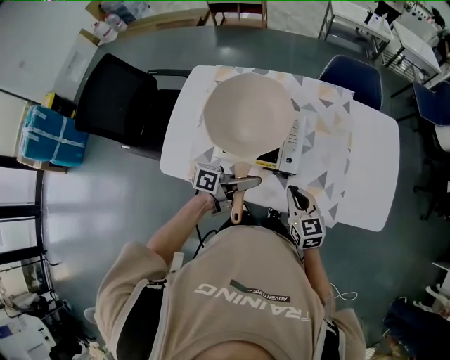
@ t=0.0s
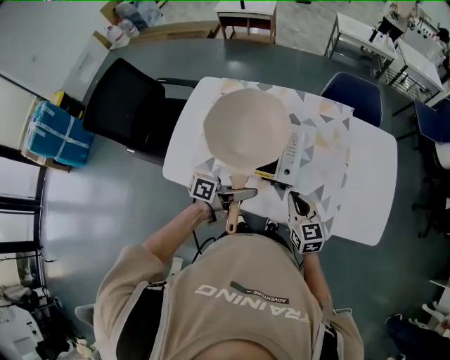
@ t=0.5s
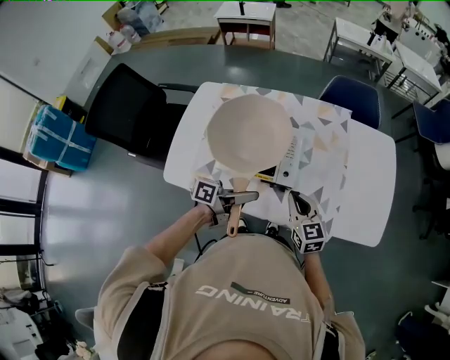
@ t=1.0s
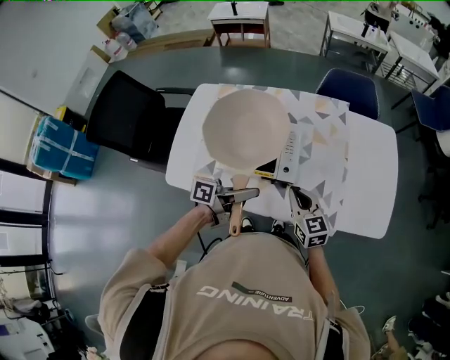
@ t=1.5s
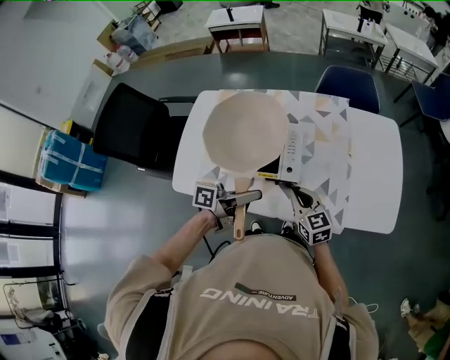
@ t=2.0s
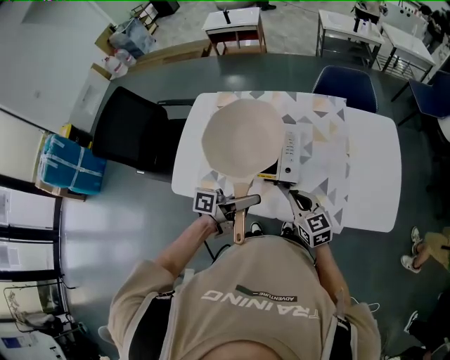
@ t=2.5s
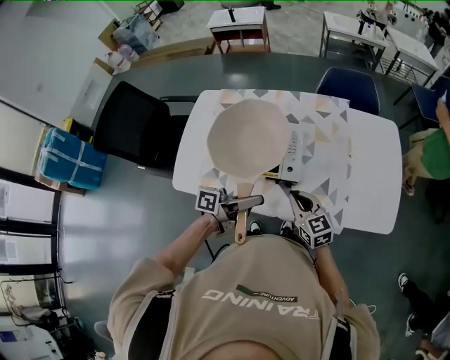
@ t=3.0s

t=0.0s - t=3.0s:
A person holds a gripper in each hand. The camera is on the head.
t=0.0s - t=1.5s: The left gripper moves approximately 5 cm.
t=1.5s - t=3.0s: The grippers stay close to where they were, moving slightly.

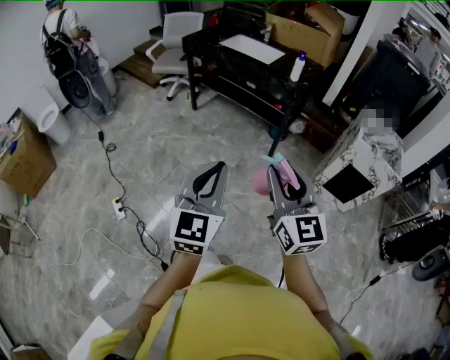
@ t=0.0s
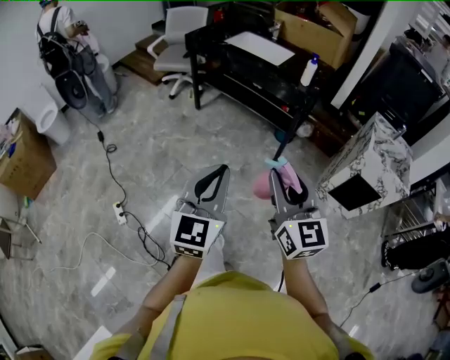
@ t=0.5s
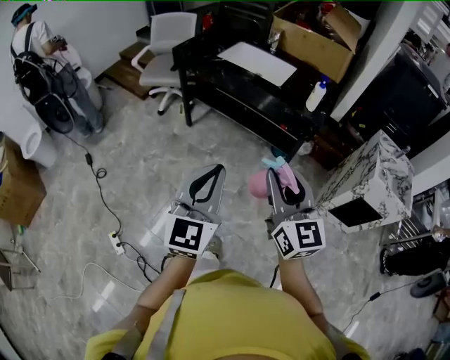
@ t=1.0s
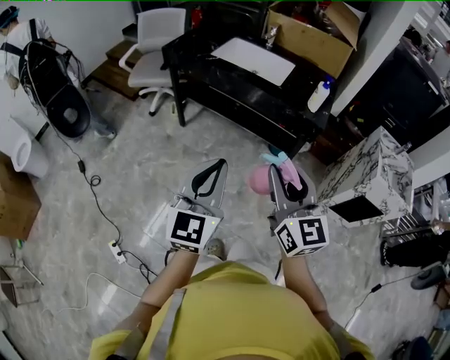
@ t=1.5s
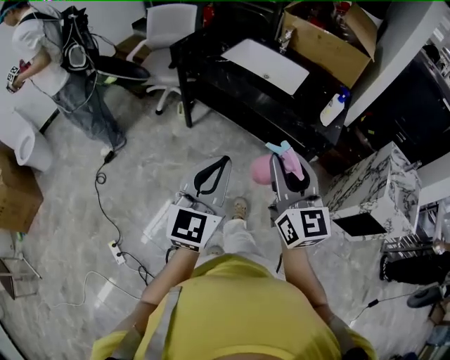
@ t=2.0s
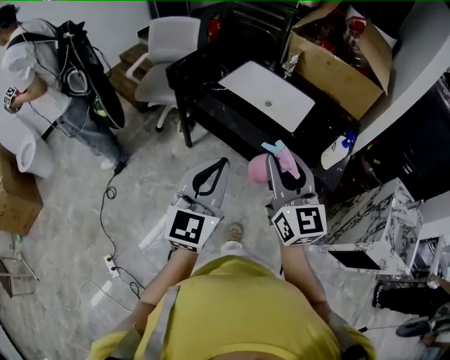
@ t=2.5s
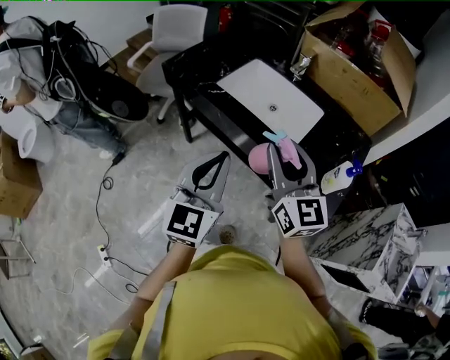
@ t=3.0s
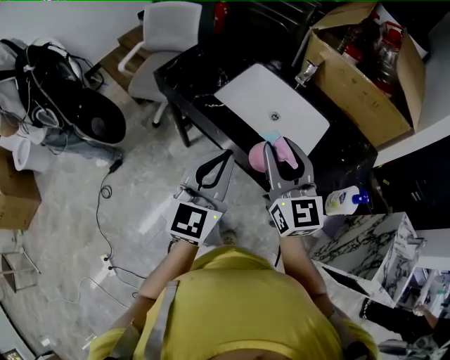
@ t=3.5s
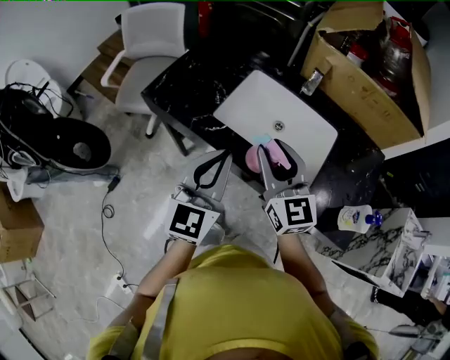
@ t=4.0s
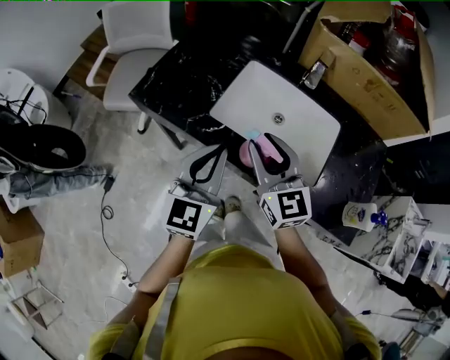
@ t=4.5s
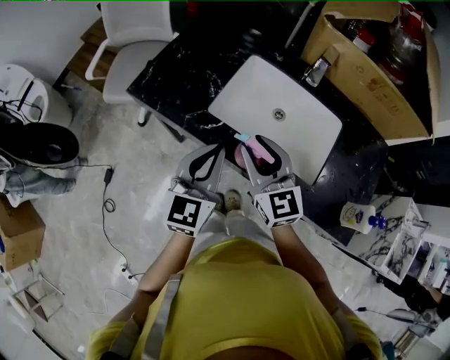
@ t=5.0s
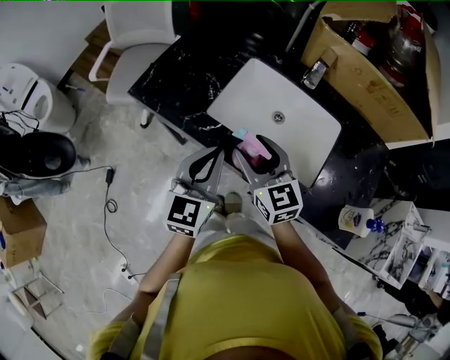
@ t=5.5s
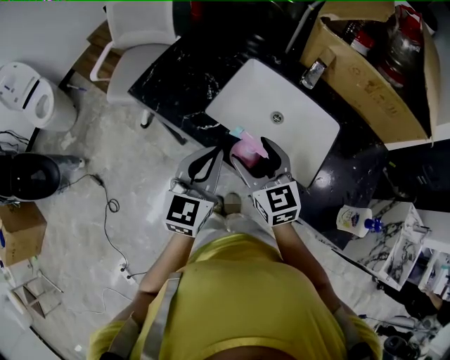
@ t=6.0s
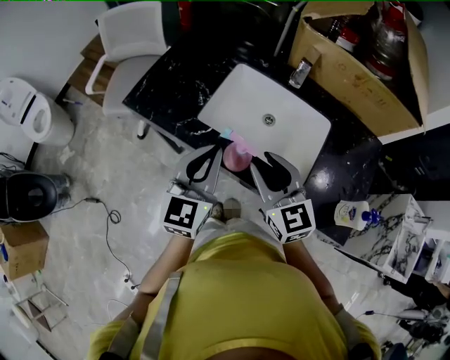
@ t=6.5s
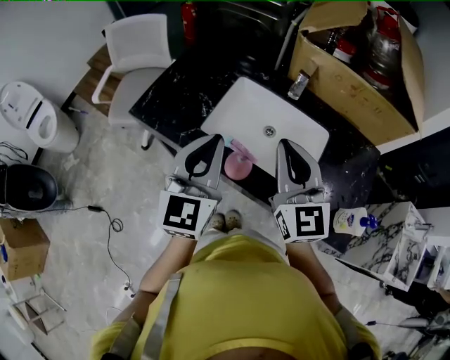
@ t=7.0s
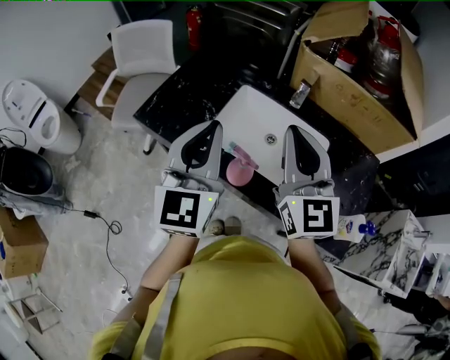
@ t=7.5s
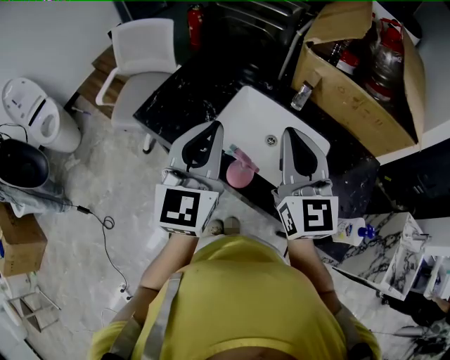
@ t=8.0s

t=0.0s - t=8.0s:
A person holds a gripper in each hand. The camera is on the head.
t=0.0s - t=2.0s: Both grippers are carried forward, about 50 cm.
t=2.0s - t=4.0s: The pair of grippers is taken forward, some 50 cm.
t=4.0s - t=6.0s: Both grippers move downward, about 10 cm. The right gripper opens up.
t=6.0s - t=8.0s: Both grippers move upward, some 20 cm. The right gripper rotates approximately 30 degrees, and closes.

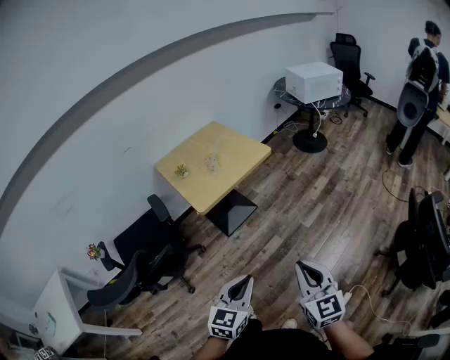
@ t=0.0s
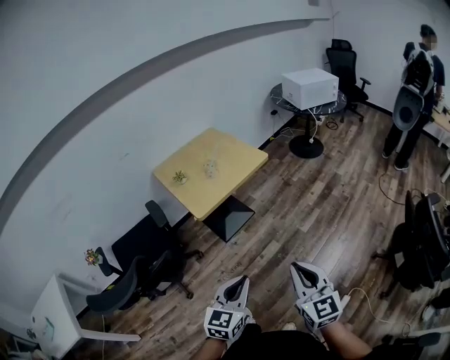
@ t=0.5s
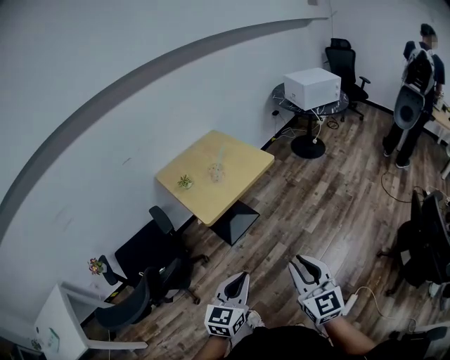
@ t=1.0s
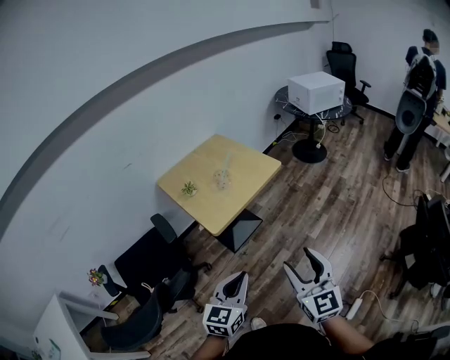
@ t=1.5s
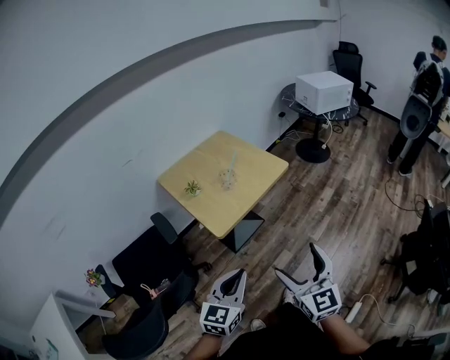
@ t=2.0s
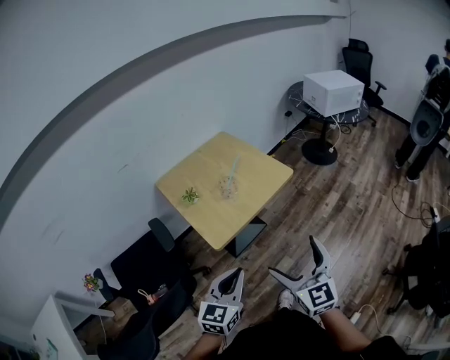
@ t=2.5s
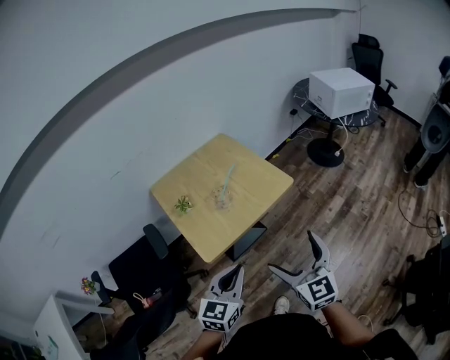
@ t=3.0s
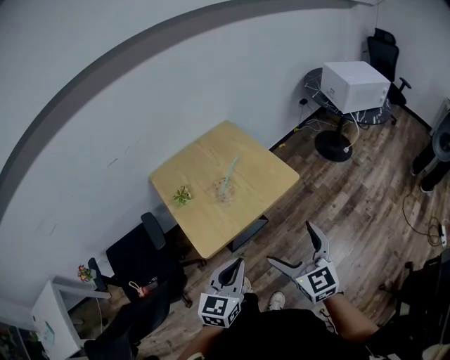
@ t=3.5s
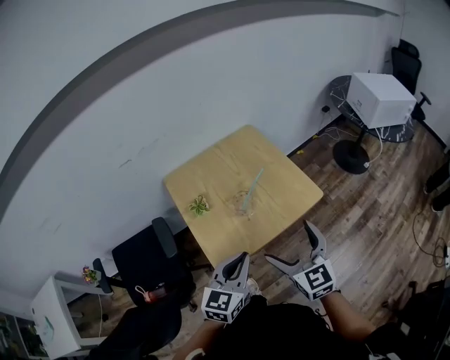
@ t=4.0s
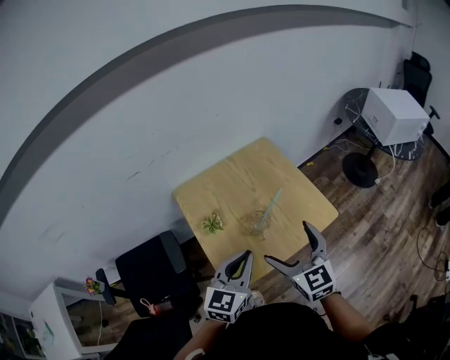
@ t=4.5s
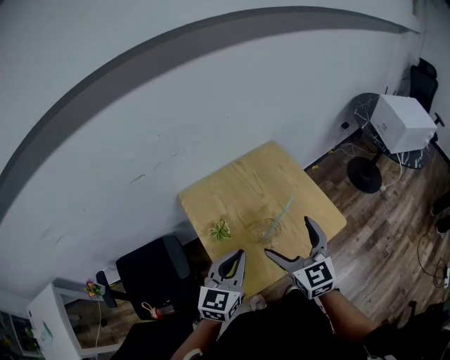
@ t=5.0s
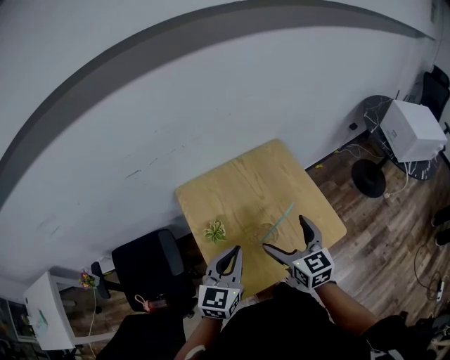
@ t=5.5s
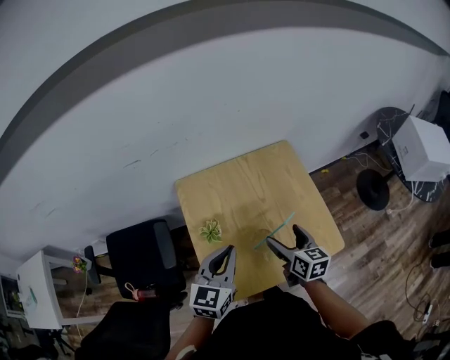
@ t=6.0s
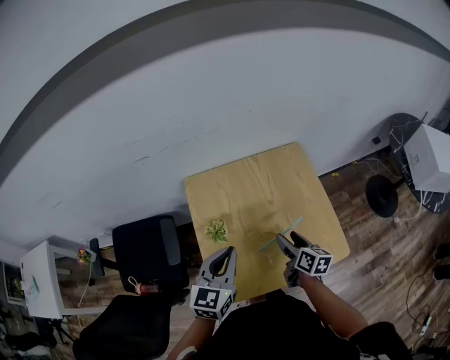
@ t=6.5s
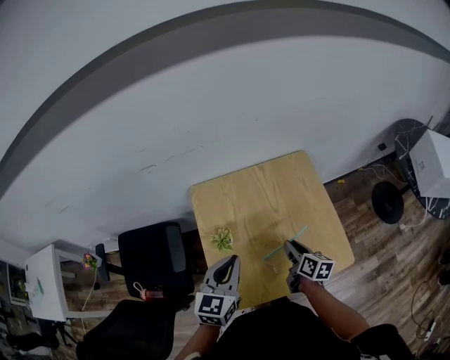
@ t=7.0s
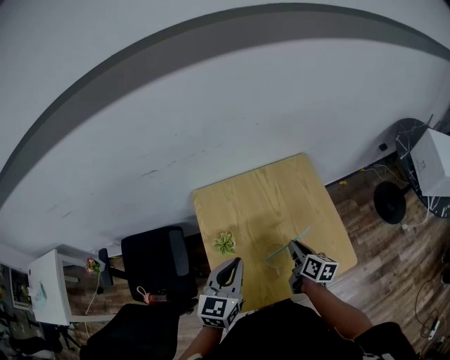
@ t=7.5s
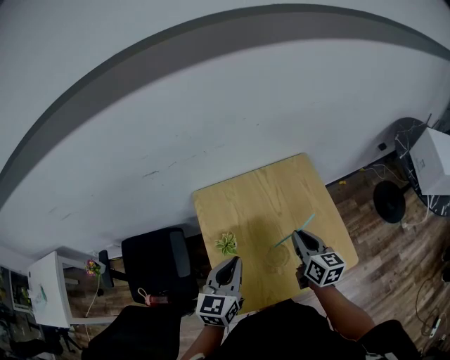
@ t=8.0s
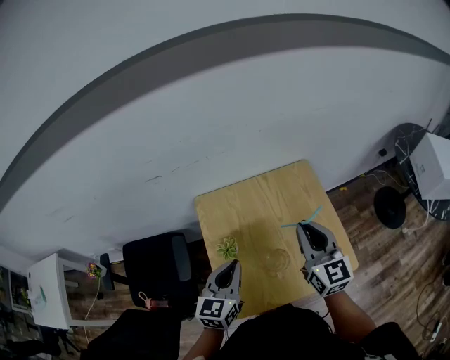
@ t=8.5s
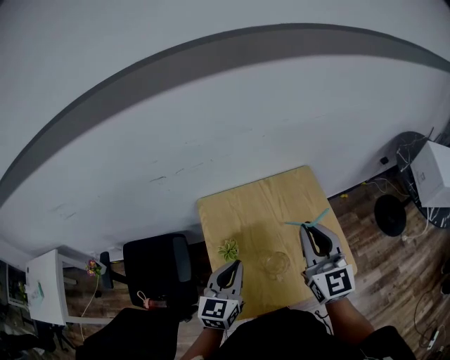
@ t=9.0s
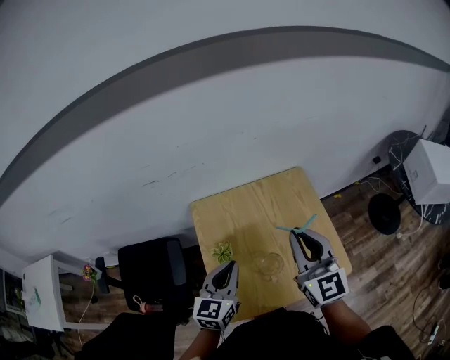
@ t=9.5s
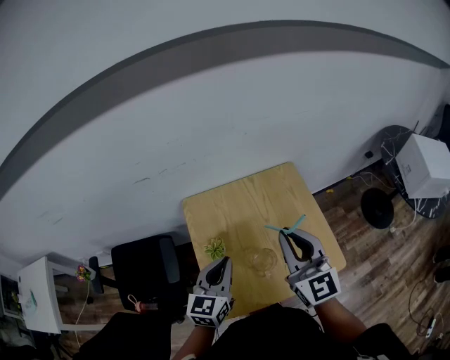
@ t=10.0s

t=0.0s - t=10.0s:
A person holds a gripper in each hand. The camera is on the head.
t=0.0s - t=2.0s: Both grippers travel together to the left and forward, some 20 cm. The right gripper opens.
t=2.0s - t=4.0s: Both grippers travel together forward, some 35 cm. The right gripper turns by about 20 degrees.
t=4.0s - t=6.0s: The right gripper travels forward and downward by roughly 30 cm, and turns by roughly 30 degrees. Meanwhile the left gripper moves forward, approximately 20 cm.
t=6.0s - t=8.0s: The right gripper travels downward and back again, about 5 cm each way, and closes up.
t=8.0s - t=10.0s: The right gripper heads upward, covering roughly 20 cm, and changes its angle by approximately 40 degrees.

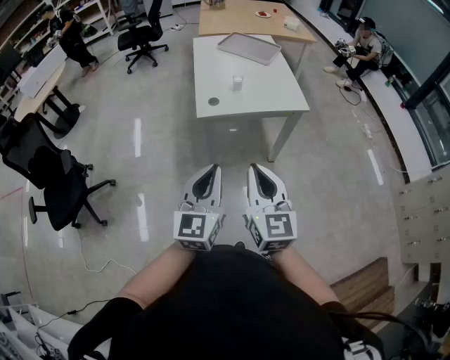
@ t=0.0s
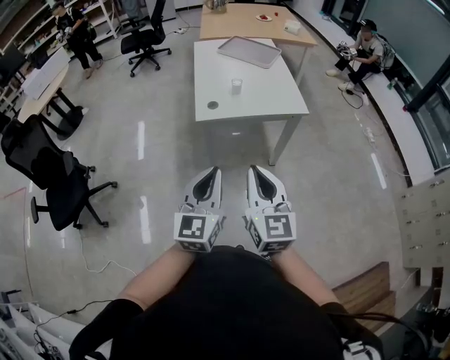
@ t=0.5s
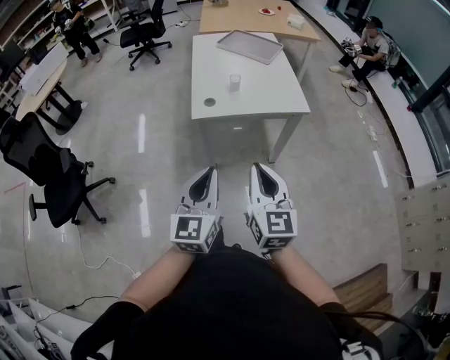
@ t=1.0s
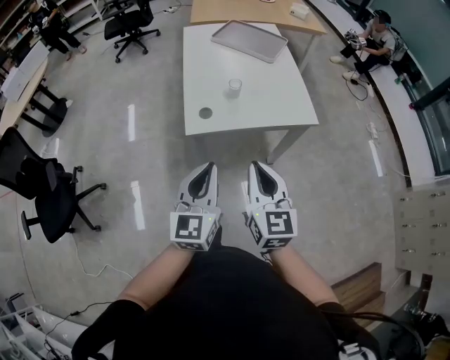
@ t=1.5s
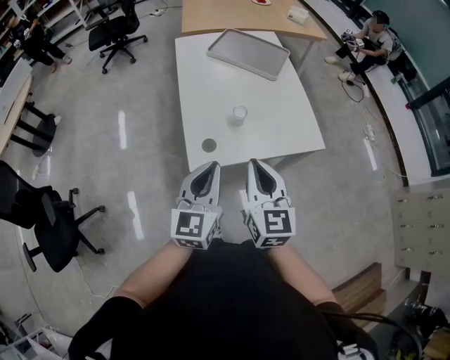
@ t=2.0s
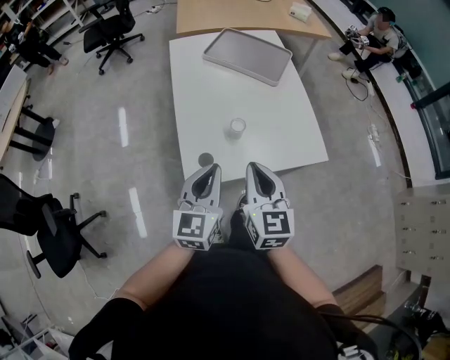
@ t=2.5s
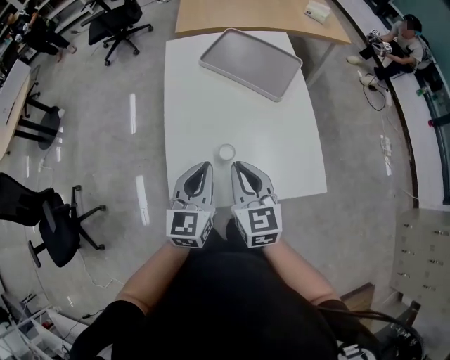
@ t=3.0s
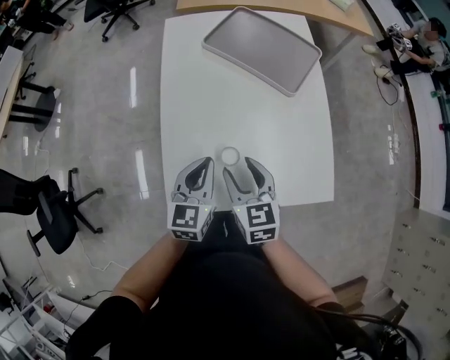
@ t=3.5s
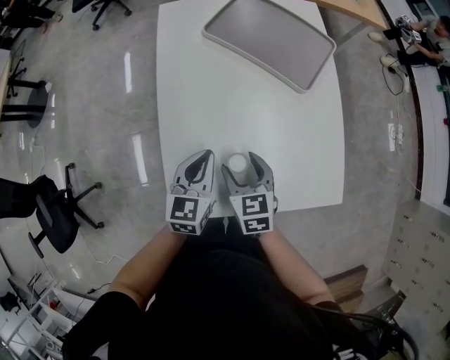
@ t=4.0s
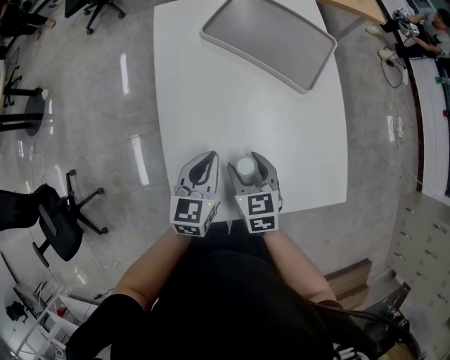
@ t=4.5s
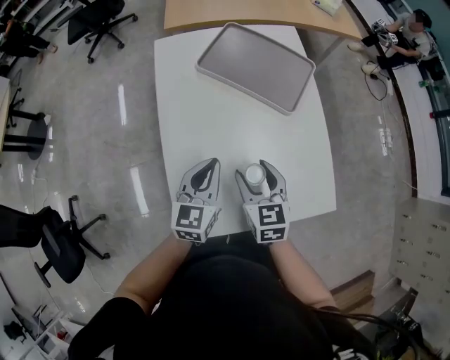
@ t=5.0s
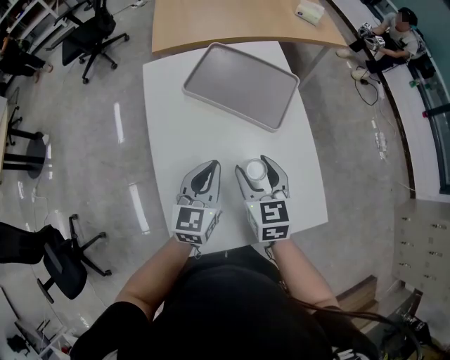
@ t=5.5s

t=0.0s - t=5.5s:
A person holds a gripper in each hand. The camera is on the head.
t=0.0s - t=2.0s: Both grippers travel together forward, about 40 cm.
t=2.0s - t=3.5s: The two grippers go approximately 30 cm forward and downward. The right gripper changes its angle by some 30 degrees, and opens.
t=3.5s - t=5.5s: The left gripper shifts roughly 15 cm forward. The right gripper travels forward and to the right by approximately 15 cm.
